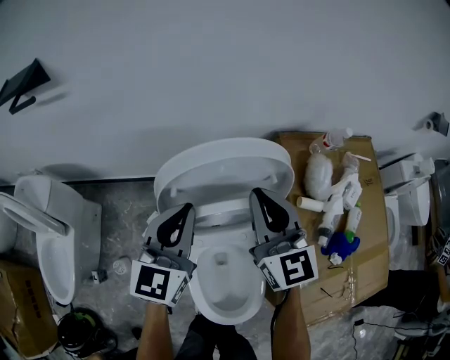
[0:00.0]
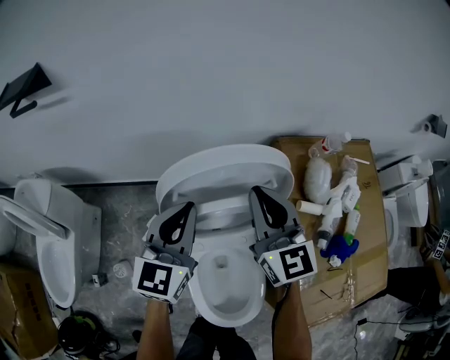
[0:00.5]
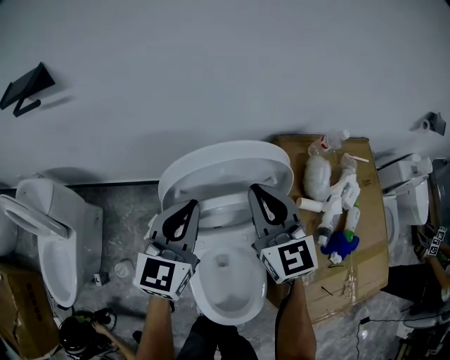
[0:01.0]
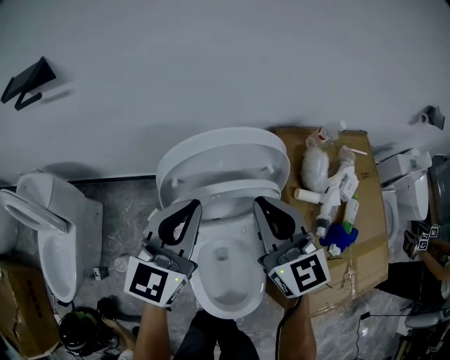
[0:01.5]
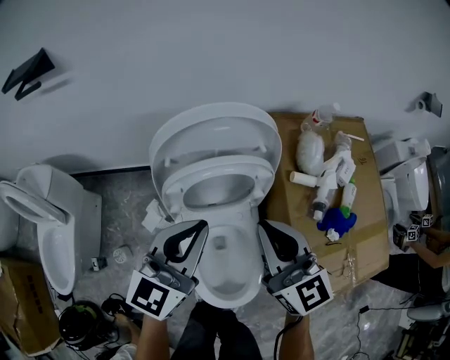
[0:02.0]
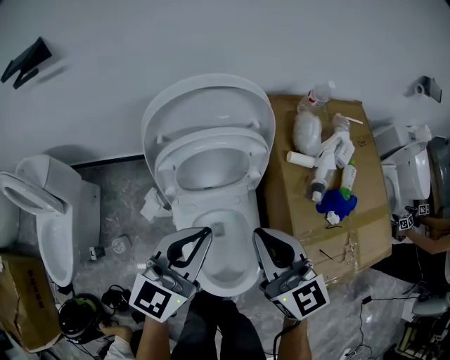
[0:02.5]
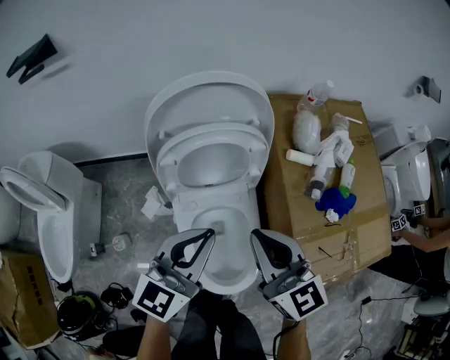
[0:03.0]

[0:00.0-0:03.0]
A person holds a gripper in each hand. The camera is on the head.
0:00.0 to 0:01.5: The right gripper moves some 5 cm. The left gripper changes place by about 5 cm.
0:01.5 to 0:03.0: The right gripper travels backward by about 15 cm, while the left gripper heads backward and to the right, covering about 20 cm.

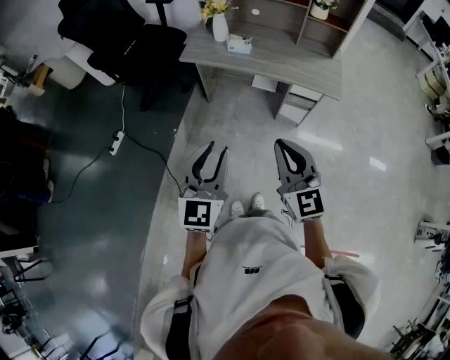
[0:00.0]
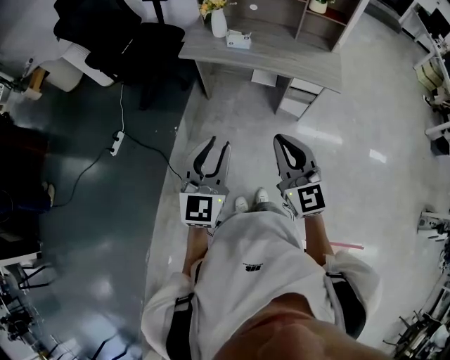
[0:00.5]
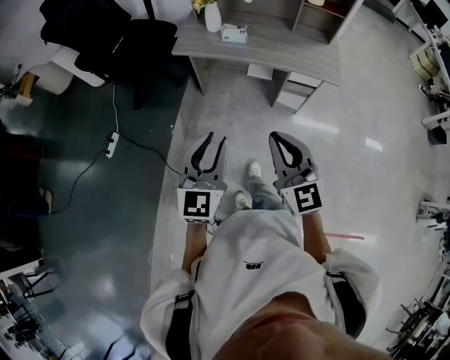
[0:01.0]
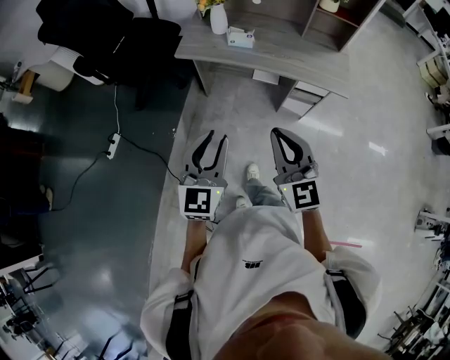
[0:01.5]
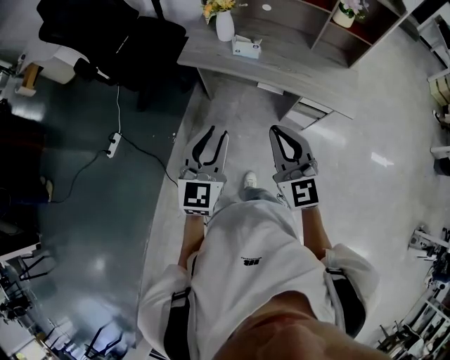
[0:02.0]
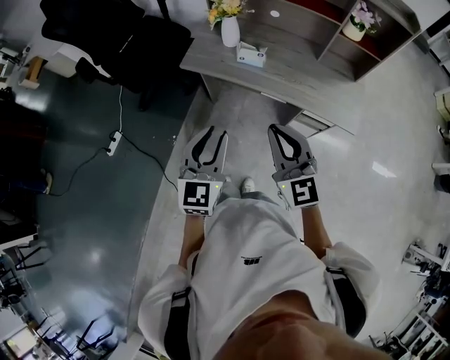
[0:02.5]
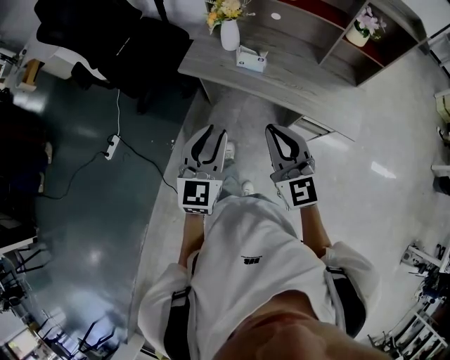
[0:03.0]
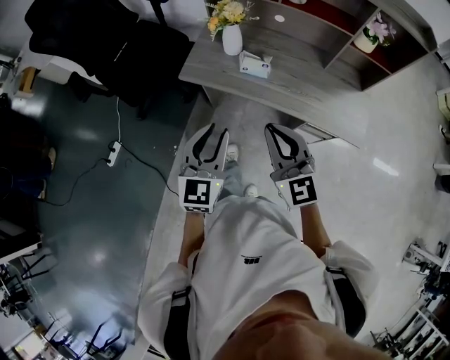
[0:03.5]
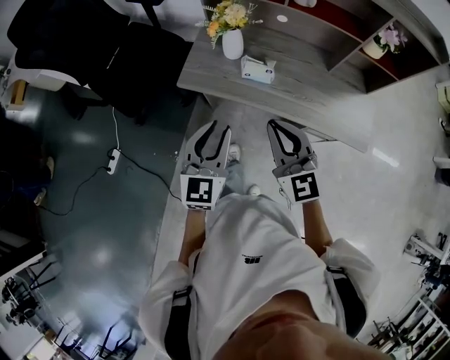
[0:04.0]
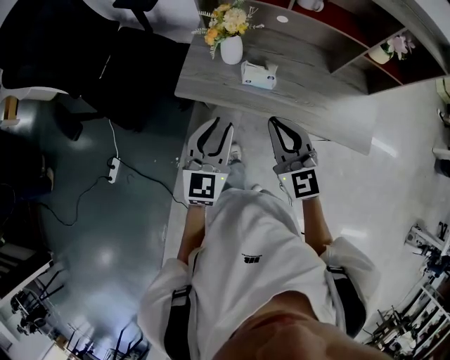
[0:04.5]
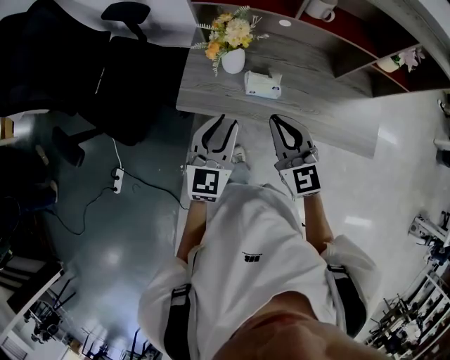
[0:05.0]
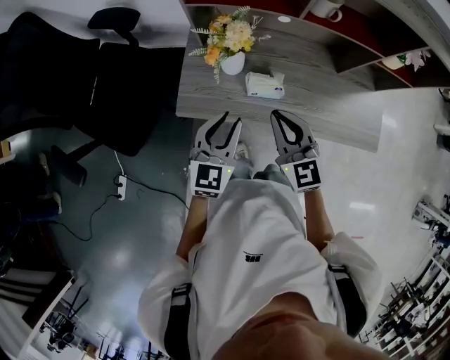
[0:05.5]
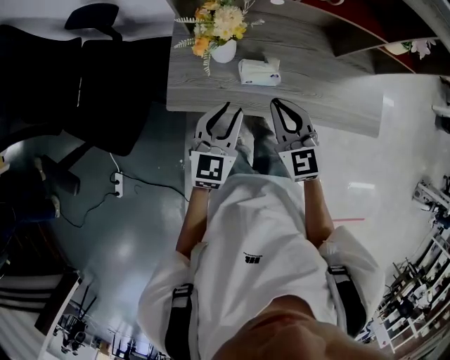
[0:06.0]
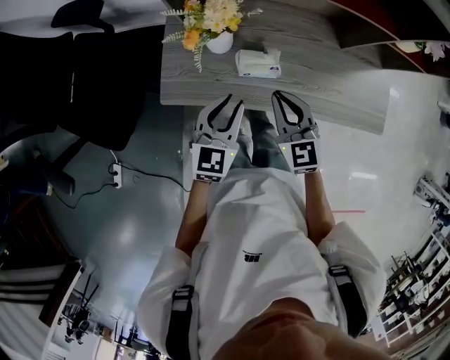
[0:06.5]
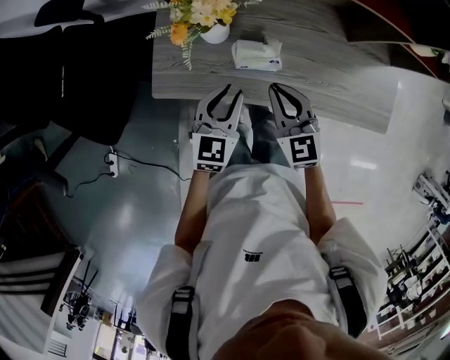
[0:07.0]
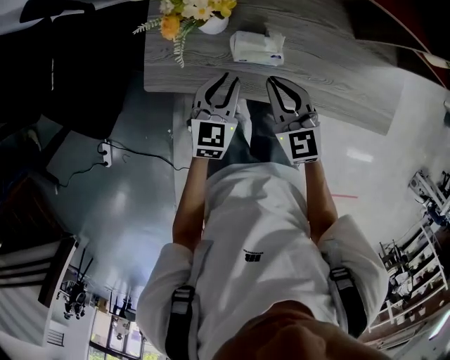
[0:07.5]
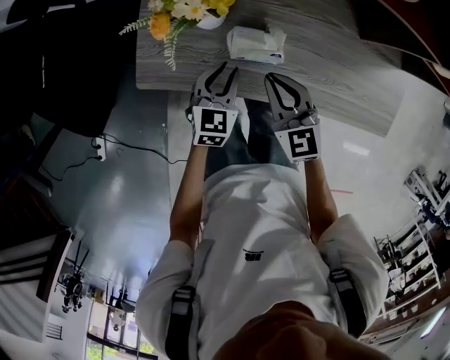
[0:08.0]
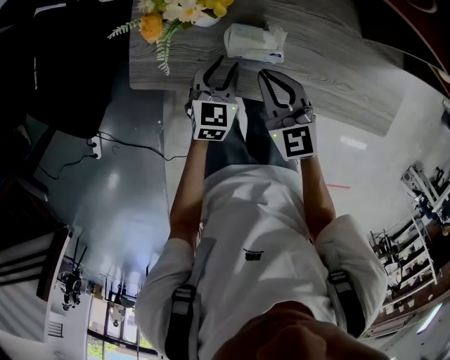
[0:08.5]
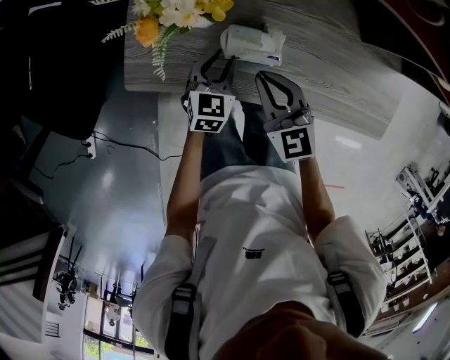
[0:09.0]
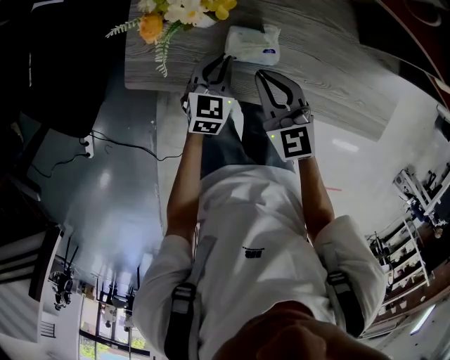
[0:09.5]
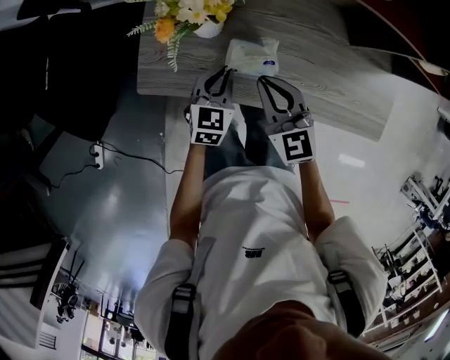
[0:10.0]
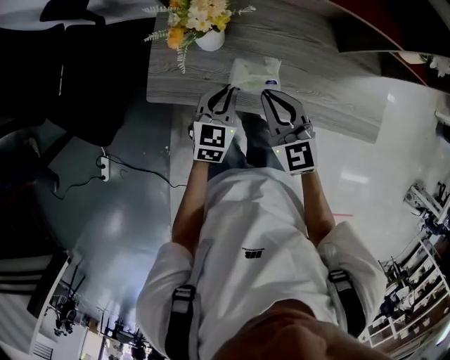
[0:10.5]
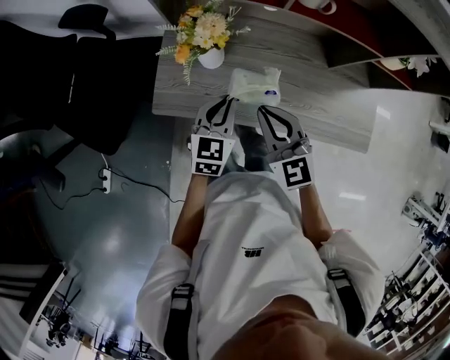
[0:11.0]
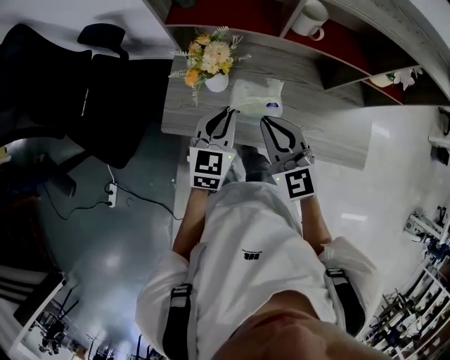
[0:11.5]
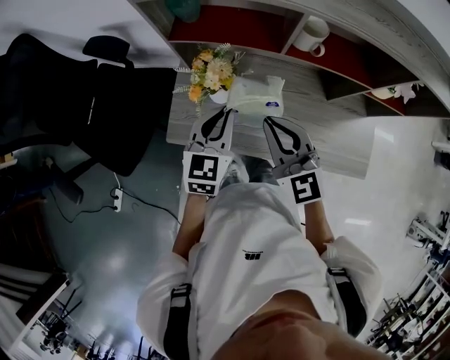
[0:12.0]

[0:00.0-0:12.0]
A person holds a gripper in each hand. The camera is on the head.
0:00.0 to 0:02.0: The grippers both shift forward by approximately 20 cm.
0:02.0 to 0:04.0: The two grippers go some 25 cm forward.
0:04.0 to 0:06.0: Both grippers move forward and downward, approximately 20 cm. The right gripper changes its angle by roughly 20 degrees, while the left gripper swivels about 20 degrees.
0:06.0 to 0:08.0: Both grippers move downward, roughly 15 cm.
0:08.0 to 0:10.0: The grippers make only small movements.
0:10.0 to 0:12.0: Both grippers move upward, roughly 25 cm.

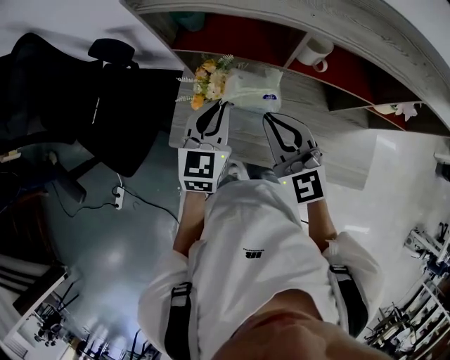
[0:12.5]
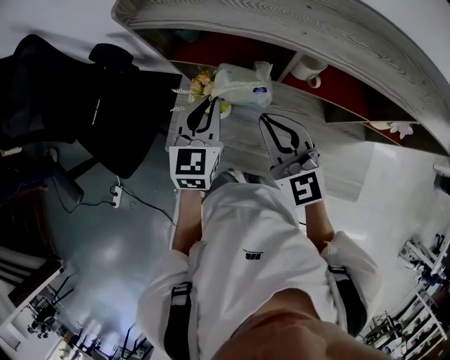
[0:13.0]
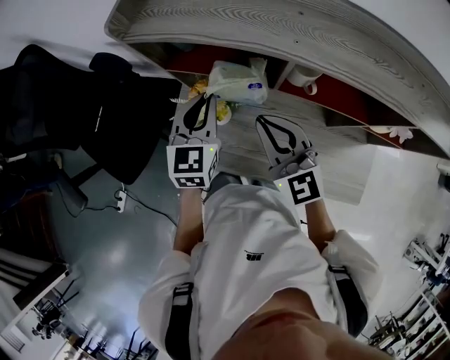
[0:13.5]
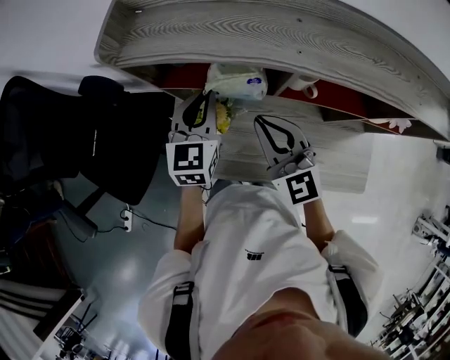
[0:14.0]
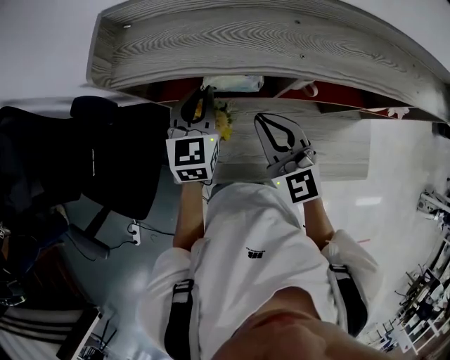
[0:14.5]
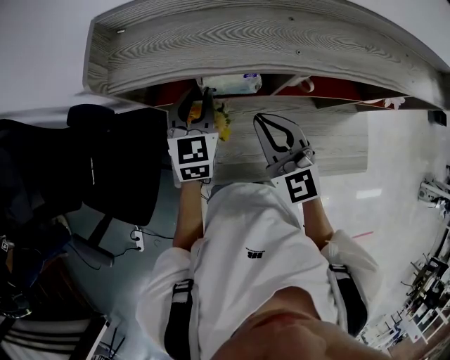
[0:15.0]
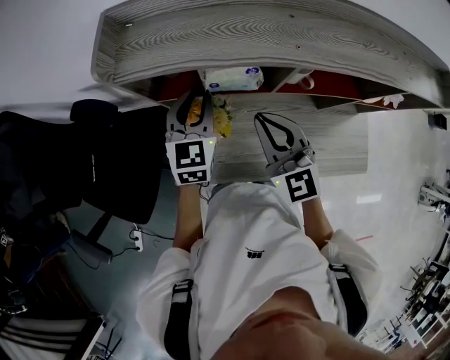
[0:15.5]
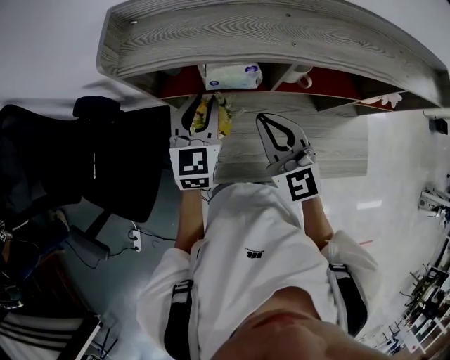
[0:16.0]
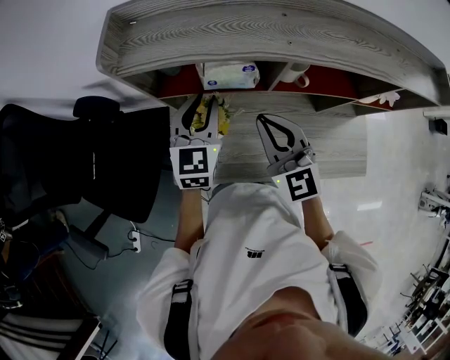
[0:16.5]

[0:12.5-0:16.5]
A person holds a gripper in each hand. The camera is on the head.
0:12.5 to 0:14.5: The left gripper heads forward, covering approximately 15 cm; the right gripper goes some 10 cm forward.
0:14.5 to 0:16.5: The grippers move only a little.

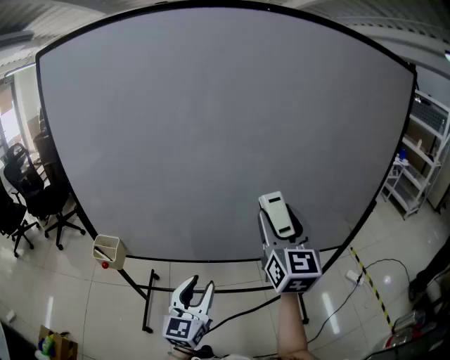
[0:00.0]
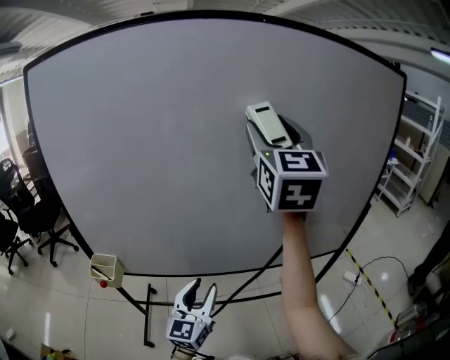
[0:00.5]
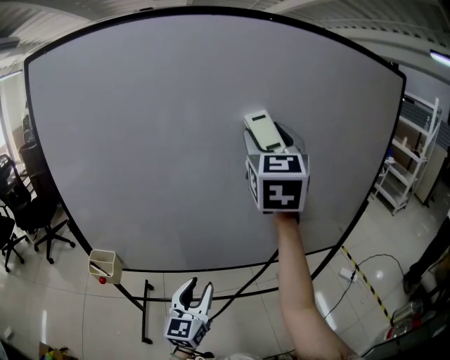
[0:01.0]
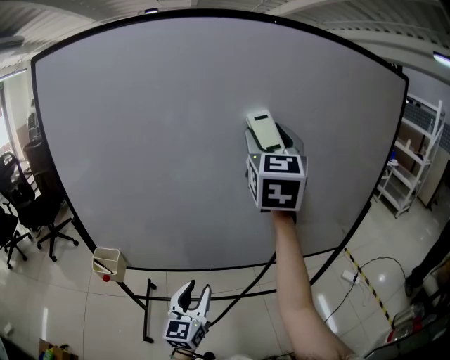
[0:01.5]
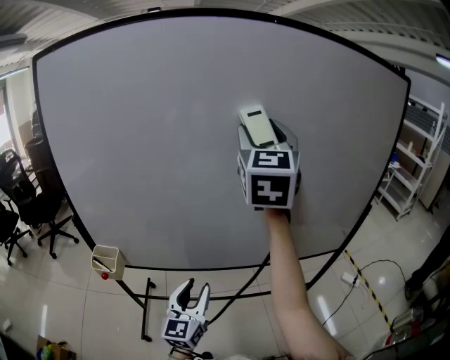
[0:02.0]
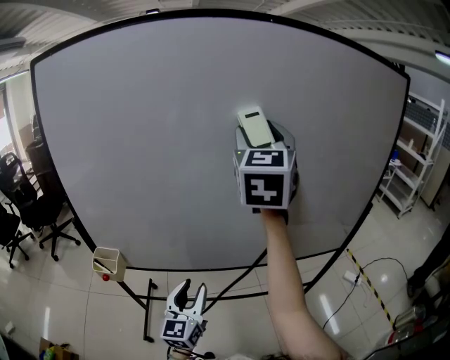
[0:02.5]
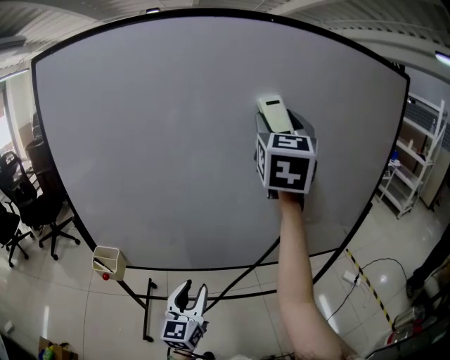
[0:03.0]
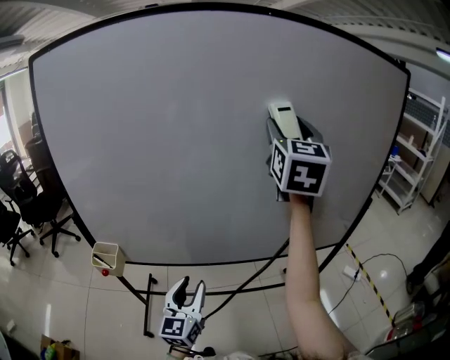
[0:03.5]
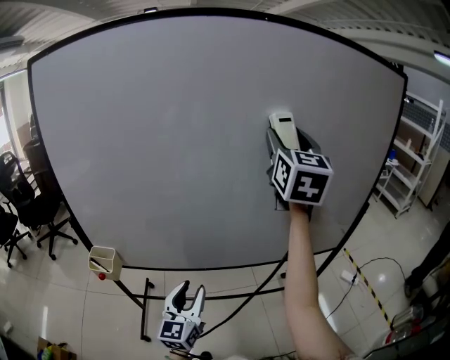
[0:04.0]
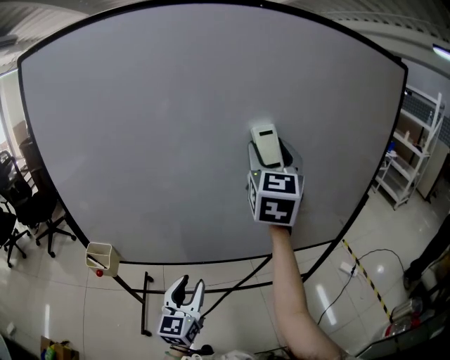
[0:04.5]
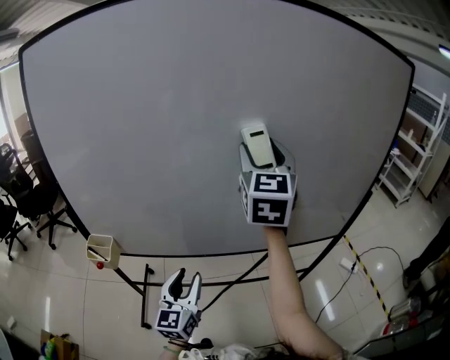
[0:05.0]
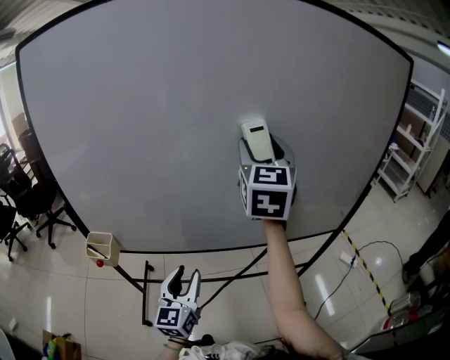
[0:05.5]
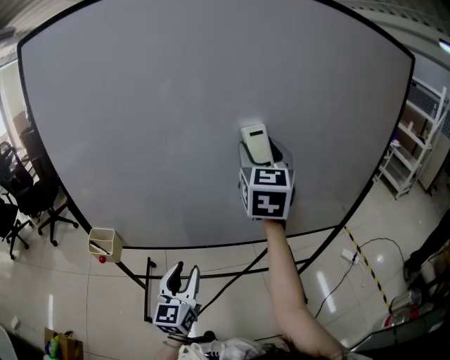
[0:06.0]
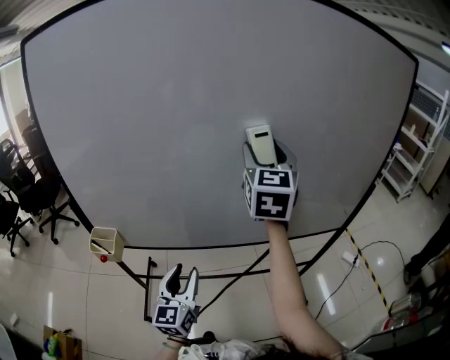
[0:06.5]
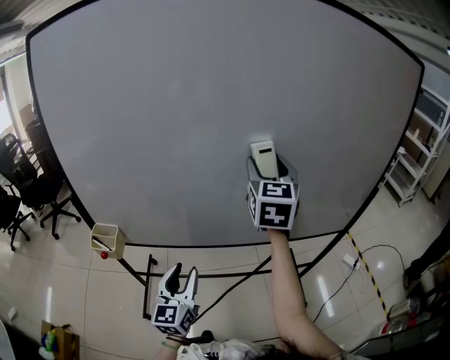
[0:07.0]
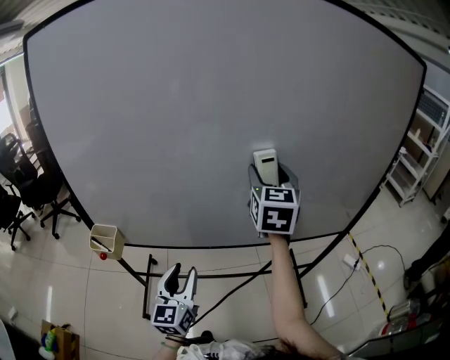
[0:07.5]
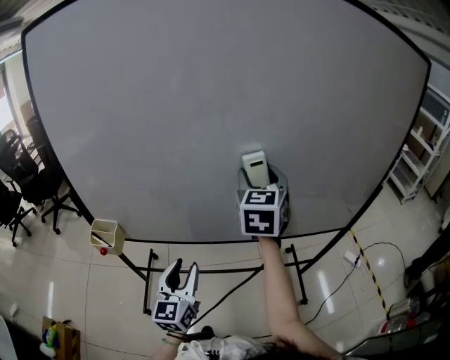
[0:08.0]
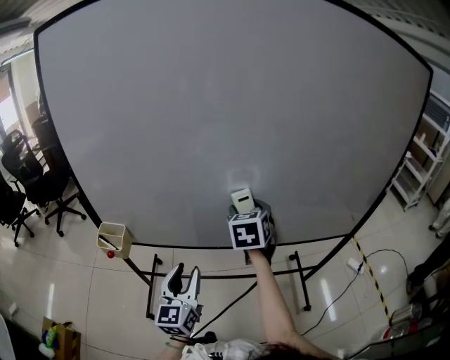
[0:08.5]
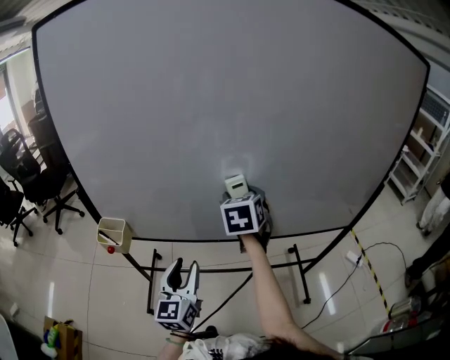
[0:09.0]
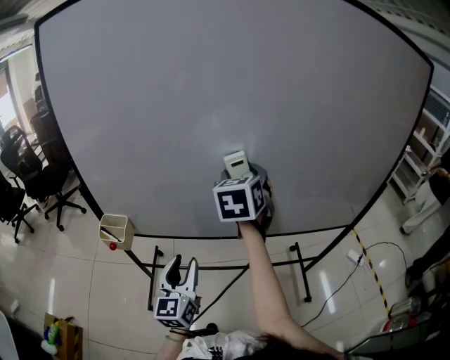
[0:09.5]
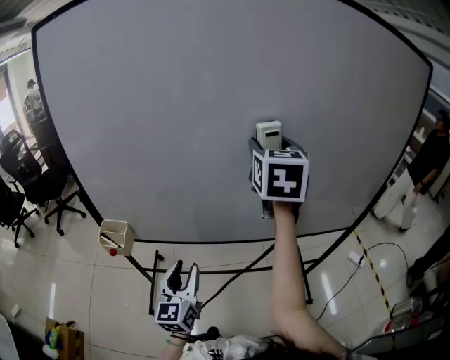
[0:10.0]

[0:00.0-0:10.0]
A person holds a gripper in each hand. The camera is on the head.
0:00.0 to 0:02.0: The right gripper travels upward and to the left by roughly 20 cm.
0:02.0 to 0:04.0: The right gripper moves to the right, some 10 cm.
0:04.0 to 0:06.0: The right gripper heads downward and to the left, covering approximately 15 cm.
0:06.0 to 0:08.0: The right gripper travels downward by some 10 cm.
0:08.0 to 0:10.0: The right gripper heads upward, covering some 10 cm.
